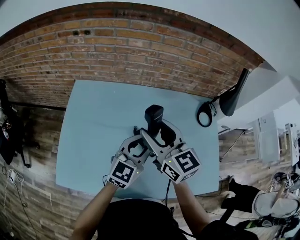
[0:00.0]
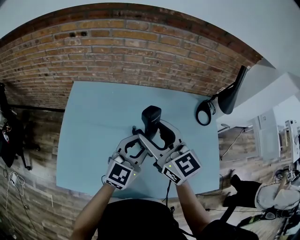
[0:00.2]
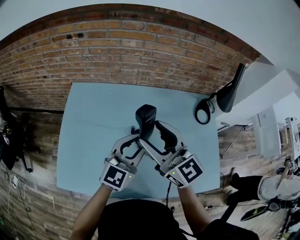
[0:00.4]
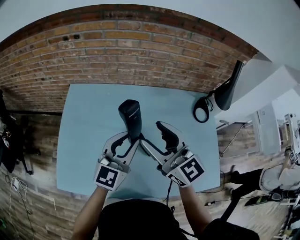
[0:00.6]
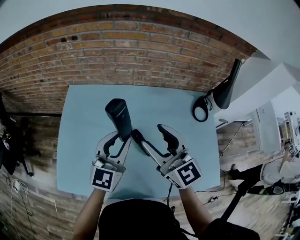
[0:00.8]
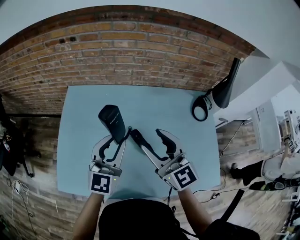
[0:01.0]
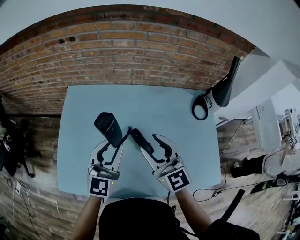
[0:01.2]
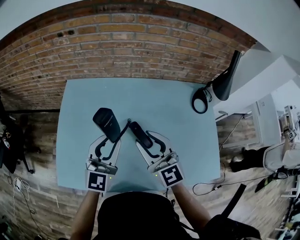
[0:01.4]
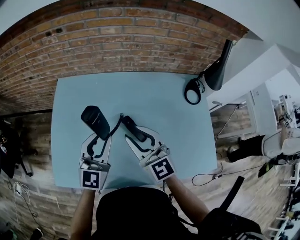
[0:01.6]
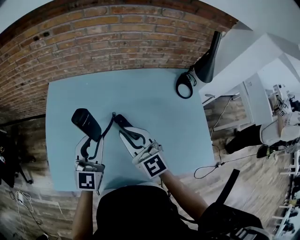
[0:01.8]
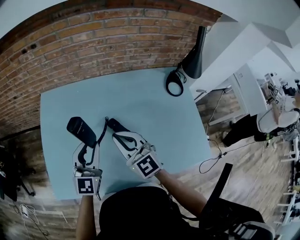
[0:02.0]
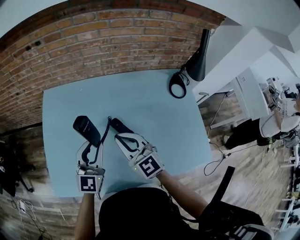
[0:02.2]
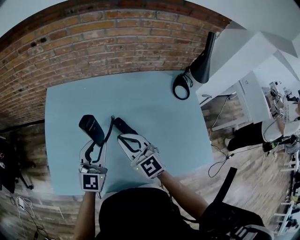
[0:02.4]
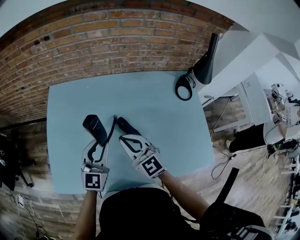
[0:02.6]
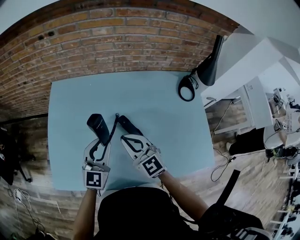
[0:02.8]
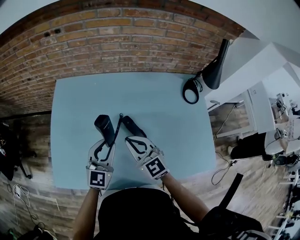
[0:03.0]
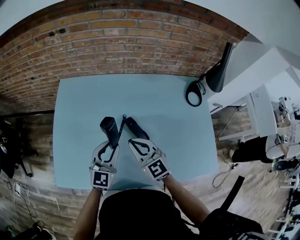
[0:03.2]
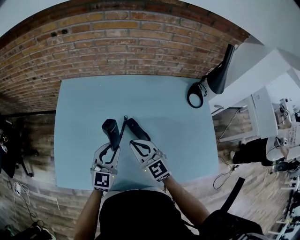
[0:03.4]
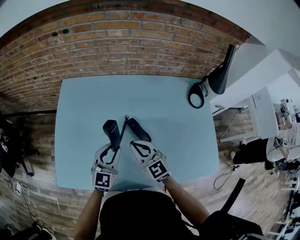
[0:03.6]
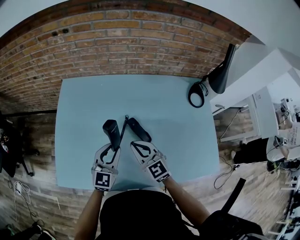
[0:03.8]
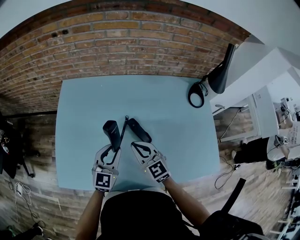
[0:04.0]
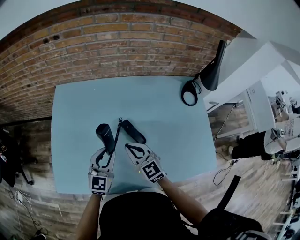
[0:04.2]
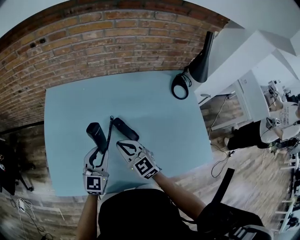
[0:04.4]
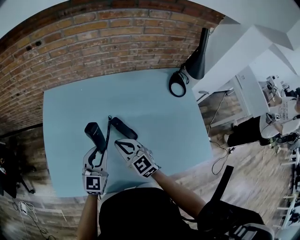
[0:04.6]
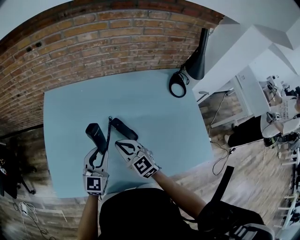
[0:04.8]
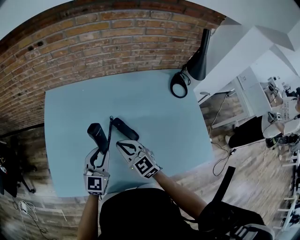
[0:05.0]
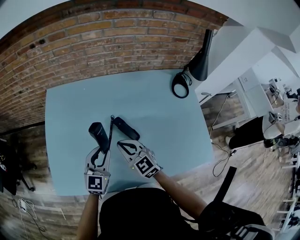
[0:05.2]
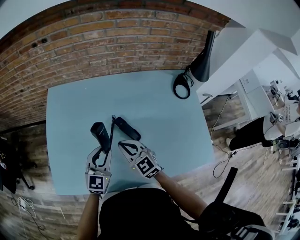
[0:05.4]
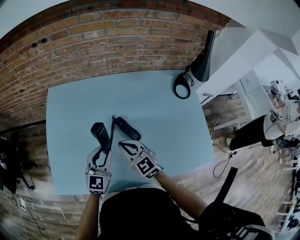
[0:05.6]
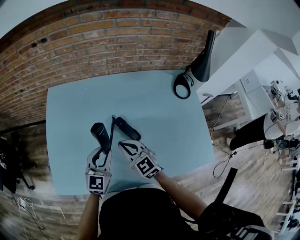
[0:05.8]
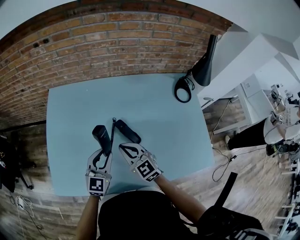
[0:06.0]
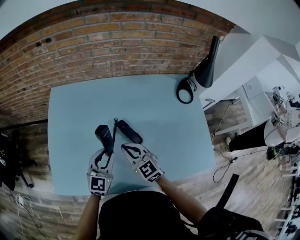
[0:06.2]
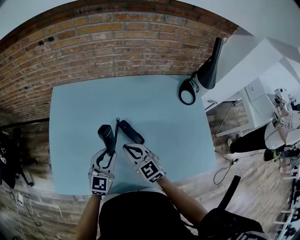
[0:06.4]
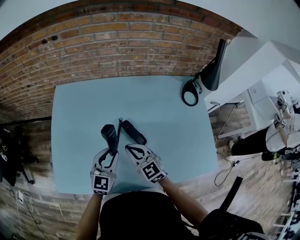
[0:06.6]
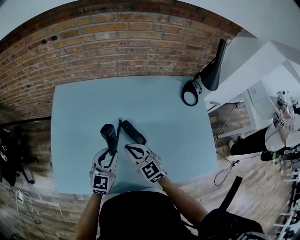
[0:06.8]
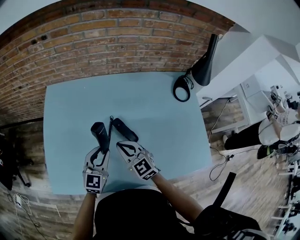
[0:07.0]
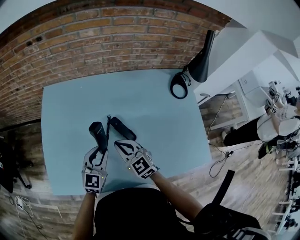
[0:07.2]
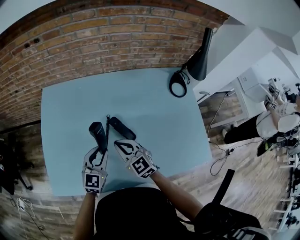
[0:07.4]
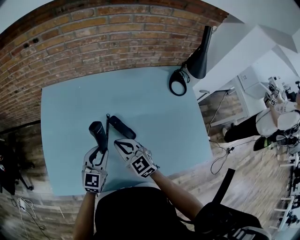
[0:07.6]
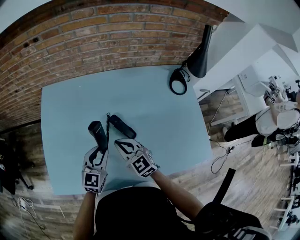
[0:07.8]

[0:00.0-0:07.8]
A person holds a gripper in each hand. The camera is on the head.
0:00.0 to 0:01.6: The left gripper heads to the left, covering approximately 10 cm. The right gripper shifts some 10 cm downward and backward.
0:01.6 to 0:03.2: The grippers both shift downward by some 10 cm. The right gripper closes up.
0:03.2 to 0:04.6: There are only small adjustments of the grippers.
0:04.6 to 0:06.2: Neither gripper changes place.
0:06.2 to 0:07.8: There are only small adjustments of the grippers.

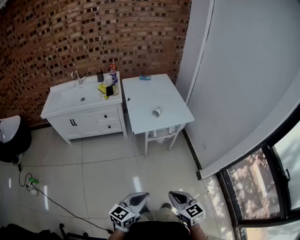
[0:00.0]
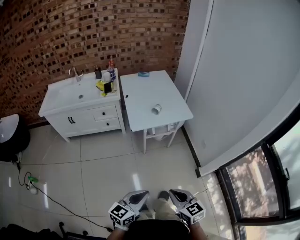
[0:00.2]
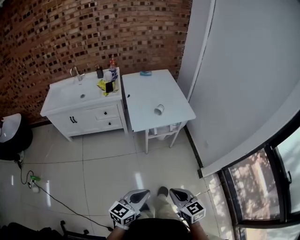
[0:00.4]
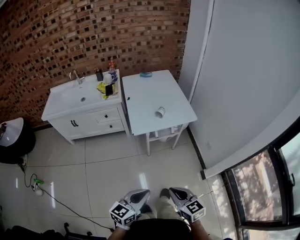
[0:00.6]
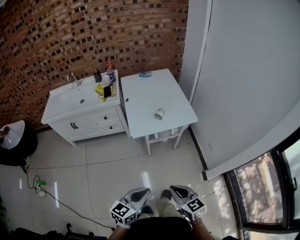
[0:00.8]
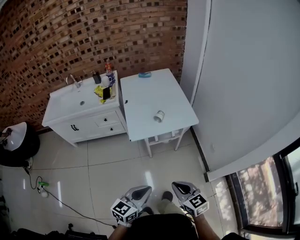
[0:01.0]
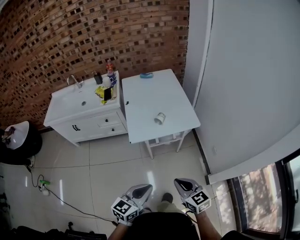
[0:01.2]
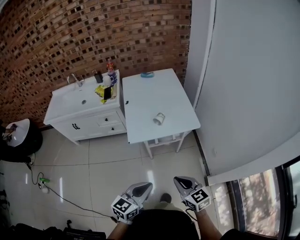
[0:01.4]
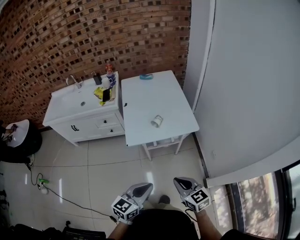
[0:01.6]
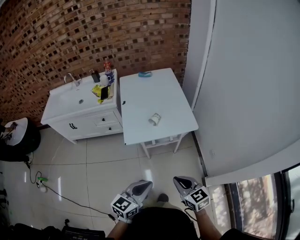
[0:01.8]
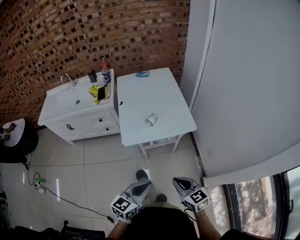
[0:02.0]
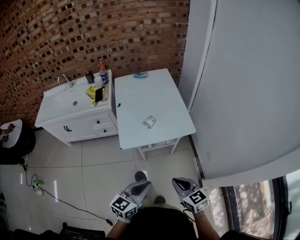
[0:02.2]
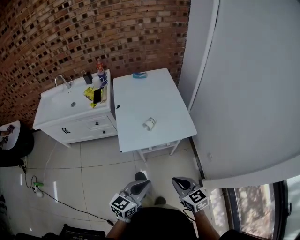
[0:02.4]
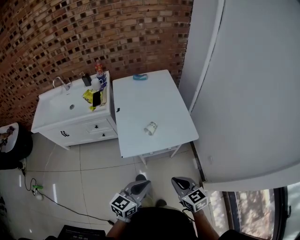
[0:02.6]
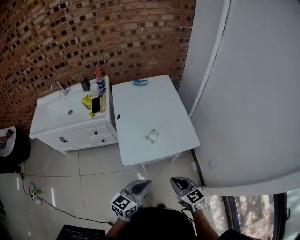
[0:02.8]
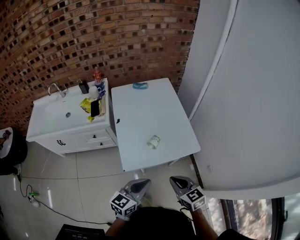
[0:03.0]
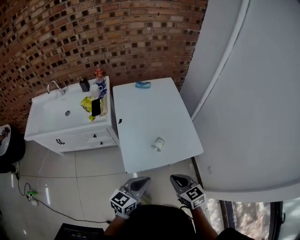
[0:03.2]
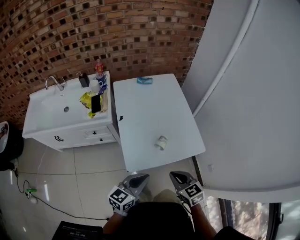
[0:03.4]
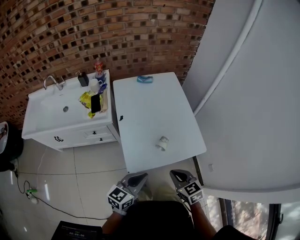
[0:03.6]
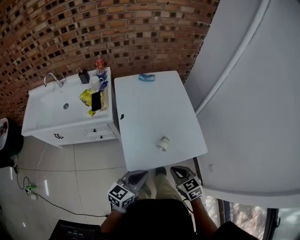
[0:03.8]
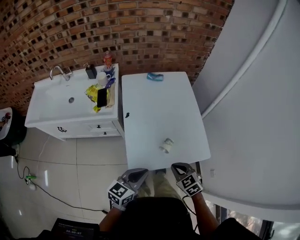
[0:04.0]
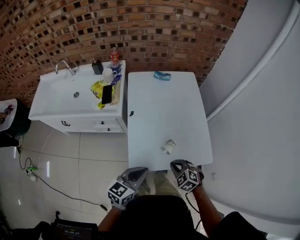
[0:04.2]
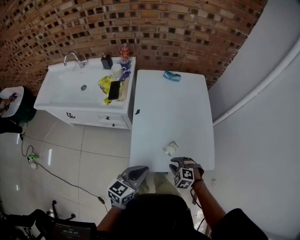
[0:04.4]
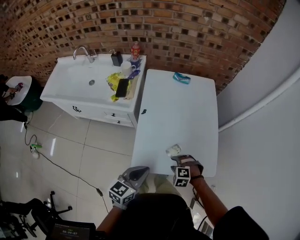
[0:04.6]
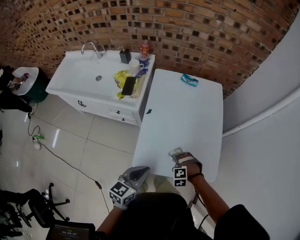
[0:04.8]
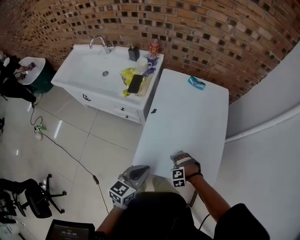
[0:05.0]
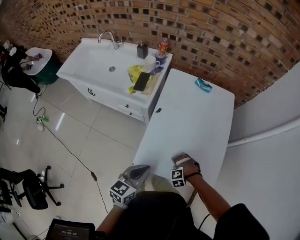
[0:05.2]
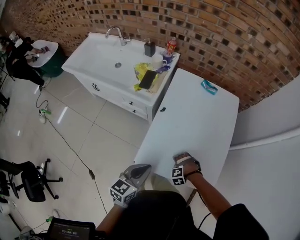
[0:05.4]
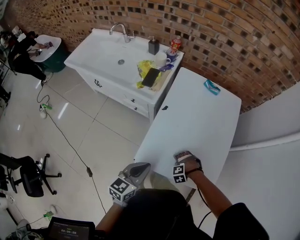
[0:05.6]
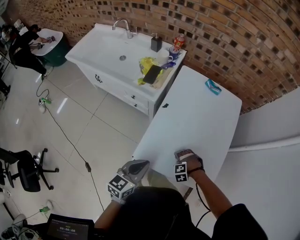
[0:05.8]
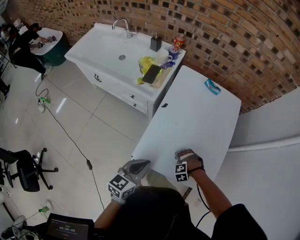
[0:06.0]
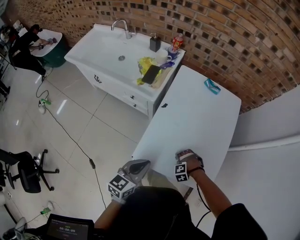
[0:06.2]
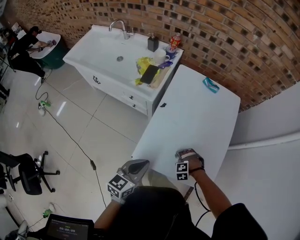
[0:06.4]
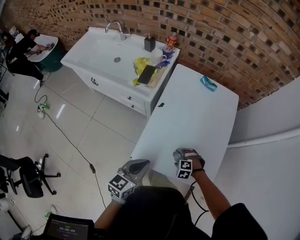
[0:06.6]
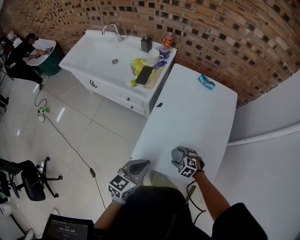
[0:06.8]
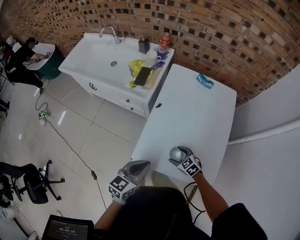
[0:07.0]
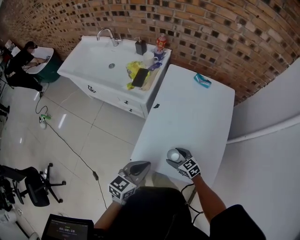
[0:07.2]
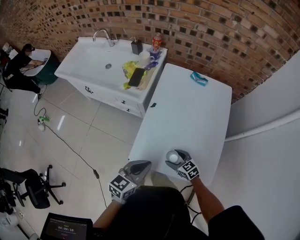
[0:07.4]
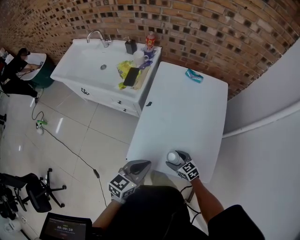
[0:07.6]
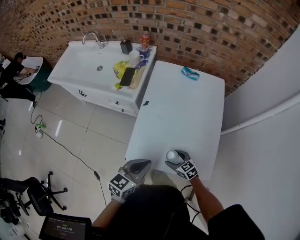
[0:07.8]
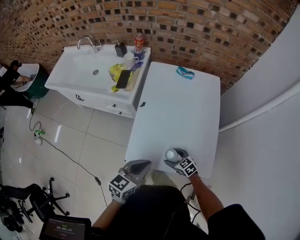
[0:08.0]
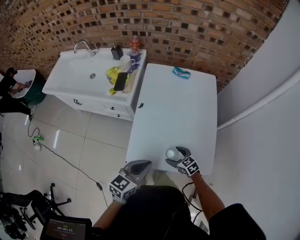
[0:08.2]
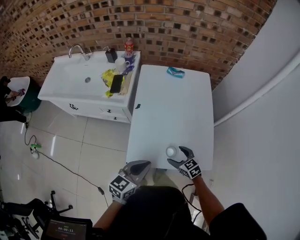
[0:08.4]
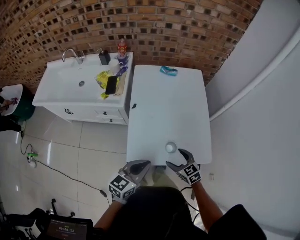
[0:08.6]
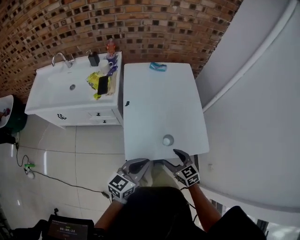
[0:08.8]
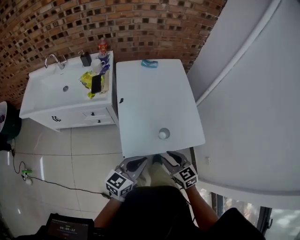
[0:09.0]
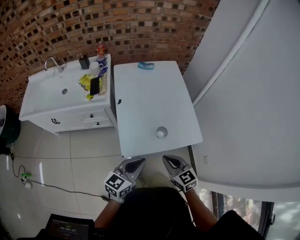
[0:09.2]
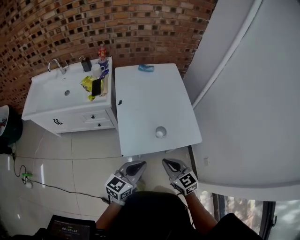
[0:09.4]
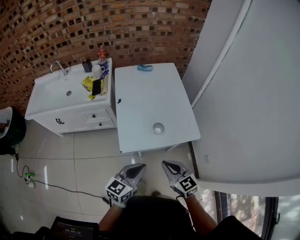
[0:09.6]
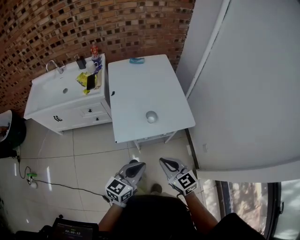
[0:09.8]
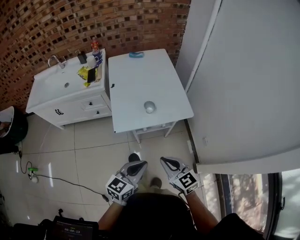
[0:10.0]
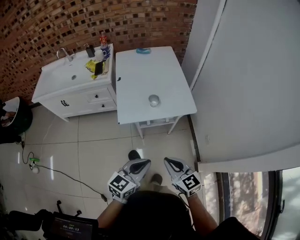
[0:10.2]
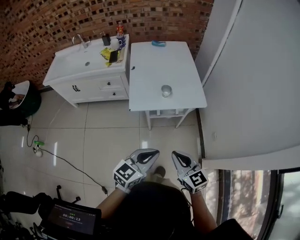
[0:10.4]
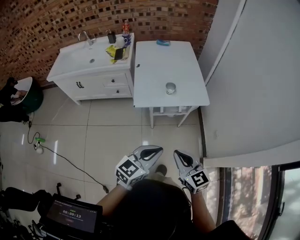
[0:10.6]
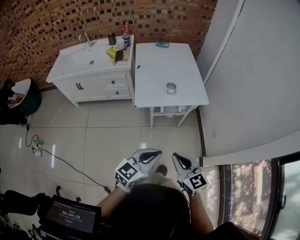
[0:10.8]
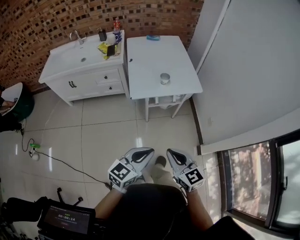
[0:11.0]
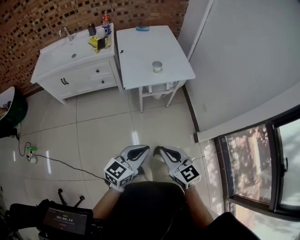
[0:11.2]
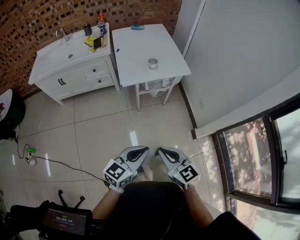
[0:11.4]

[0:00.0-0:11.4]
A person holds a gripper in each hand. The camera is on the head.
0:00.0 to 0:01.4: The right gripper goes about 25 cm forward. The left gripper travels forward and to the right by approximately 25 cm.
0:01.4 to 0:02.8: The two grippers go approximately 20 cm forward.
0:02.8 to 0:04.2: The left gripper moves forward and to the left, approximately 20 cm. The right gripper heads forward, downward and to the left, covering approximately 20 cm, and changes its angle by roughly 50 degrees.
0:04.2 to 0:05.6: The left gripper turns by some 30 degrees. The right gripper shifts some 20 cm downward, twists approximately 70 degrees counterclockwise, seen from behind, and opens up.
0:05.6 to 0:07.2: The right gripper goes about 10 cm upward, and tilts its fingers approximately 50 degrees upward.
0:07.2 to 0:08.6: The left gripper changes its angle by roughly 20 degrees. The right gripper changes place by some 10 cm, and changes its angle by roughly 30 degrees.
0:08.6 to 0:10.0: The left gripper is displaced backward by roughly 25 cm. Meanwhile the right gripper moves backward and upward, some 30 cm, changes its angle by some 20 degrees, and closes its fingers.
0:10.0 to 0:11.4: Both grippers travel together backward, approximately 25 cm.

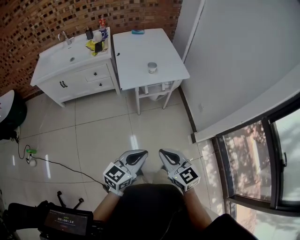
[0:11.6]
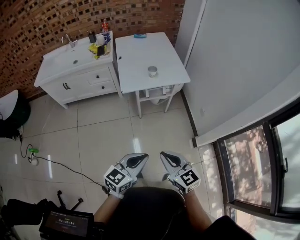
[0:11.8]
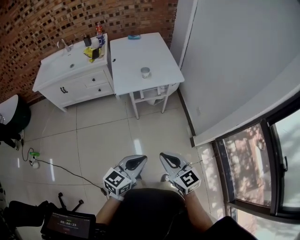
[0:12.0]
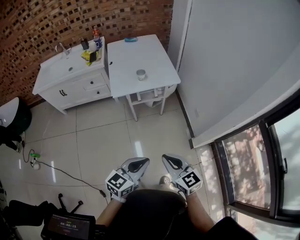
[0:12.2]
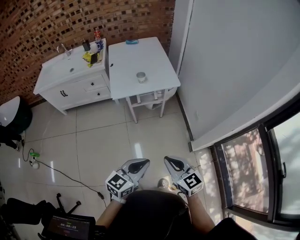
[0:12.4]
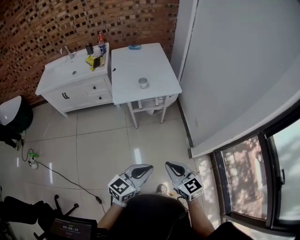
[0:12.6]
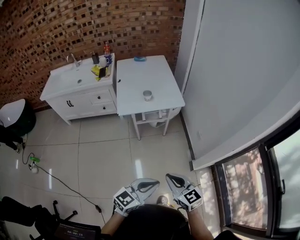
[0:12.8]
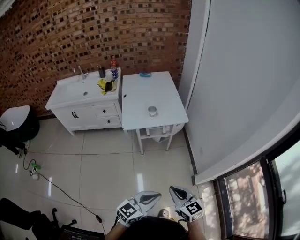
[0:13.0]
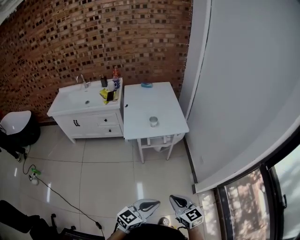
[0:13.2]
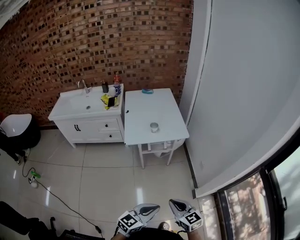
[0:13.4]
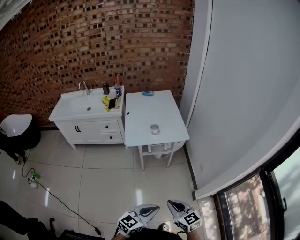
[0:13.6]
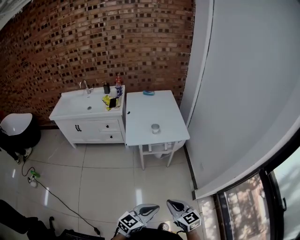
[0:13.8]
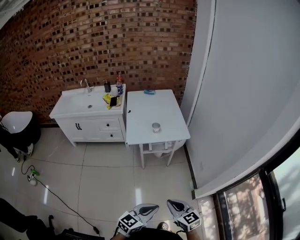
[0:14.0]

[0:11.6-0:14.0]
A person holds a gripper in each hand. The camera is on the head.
0:11.6 to 0:12.8: Both grippers move to the right, some 15 cm.
0:12.8 to 0:14.0: The grippers make only small movements.

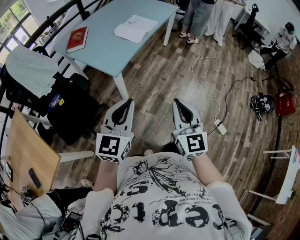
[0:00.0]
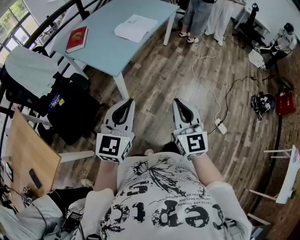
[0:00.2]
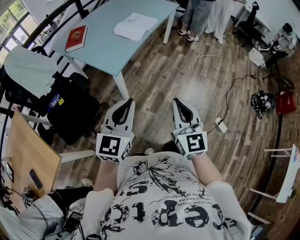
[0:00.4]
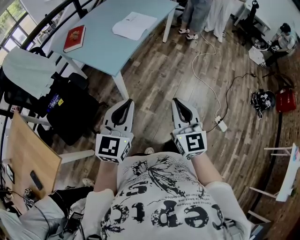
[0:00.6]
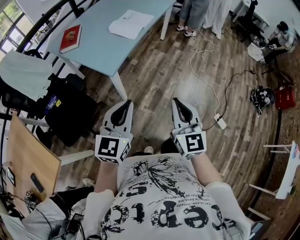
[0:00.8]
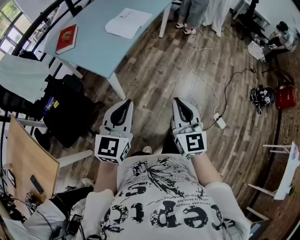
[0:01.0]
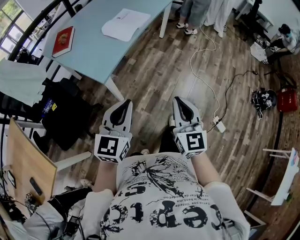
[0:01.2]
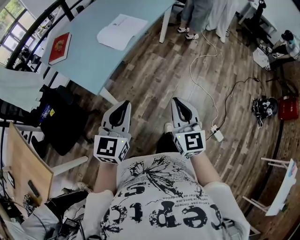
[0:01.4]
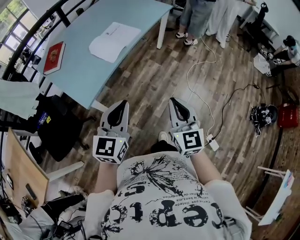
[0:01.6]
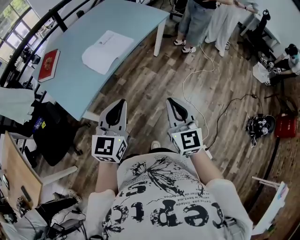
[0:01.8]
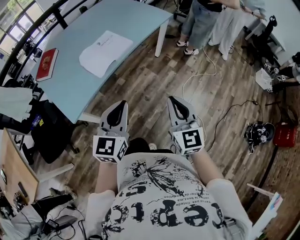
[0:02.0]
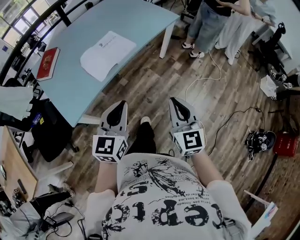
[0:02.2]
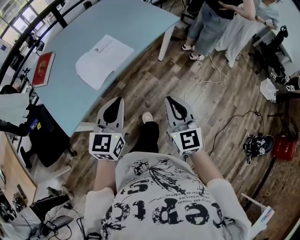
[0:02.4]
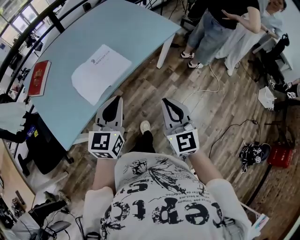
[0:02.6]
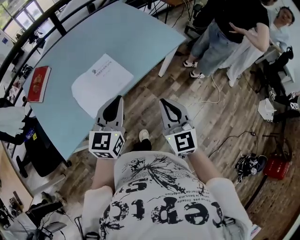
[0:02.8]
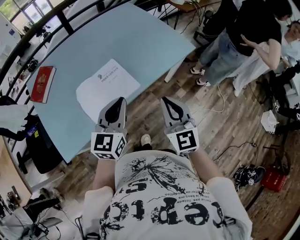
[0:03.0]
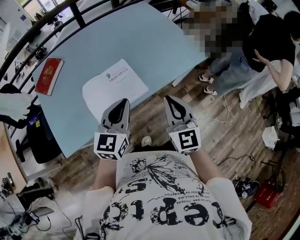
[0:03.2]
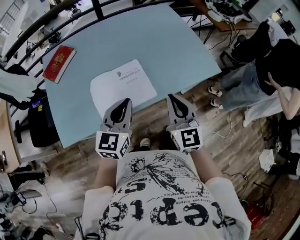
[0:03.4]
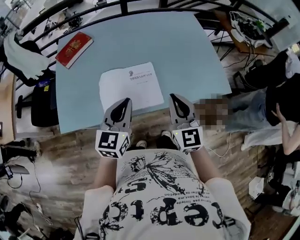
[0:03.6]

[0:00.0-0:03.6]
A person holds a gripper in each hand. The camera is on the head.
0:00.0 to 0:01.8: Both grippers are carried forward and to the right, about 40 cm.
0:01.8 to 0:03.6: Both grippers are carried some 50 cm. The right gripper swivels approximately 40 degrees, while the left gripper swivels about 40 degrees.
